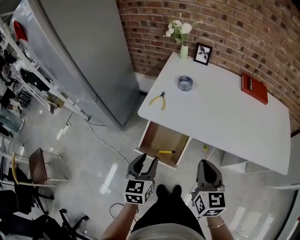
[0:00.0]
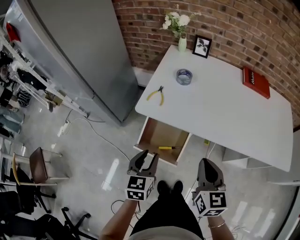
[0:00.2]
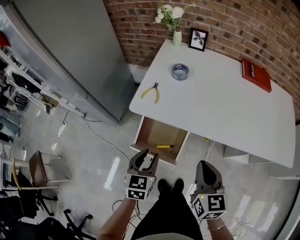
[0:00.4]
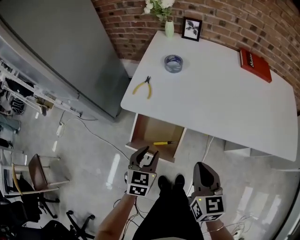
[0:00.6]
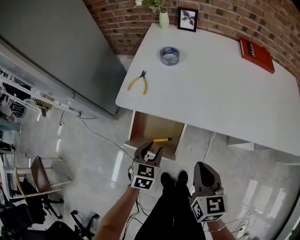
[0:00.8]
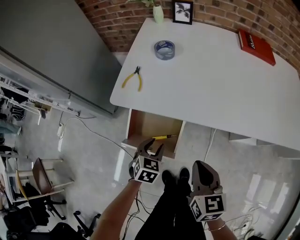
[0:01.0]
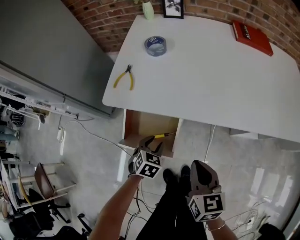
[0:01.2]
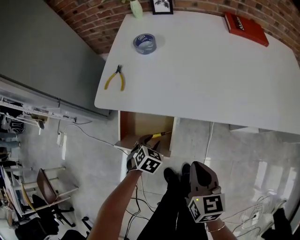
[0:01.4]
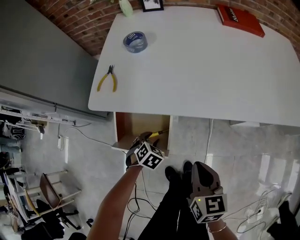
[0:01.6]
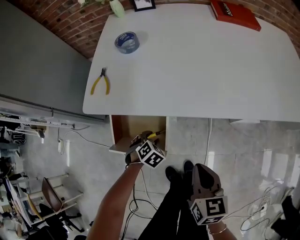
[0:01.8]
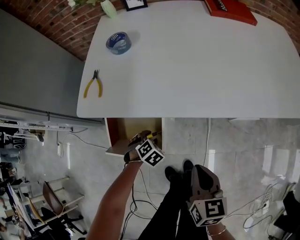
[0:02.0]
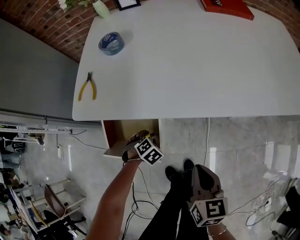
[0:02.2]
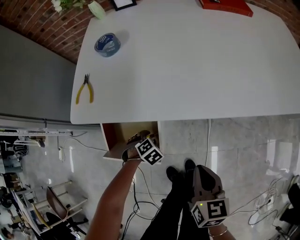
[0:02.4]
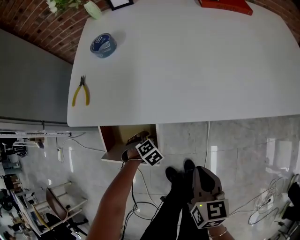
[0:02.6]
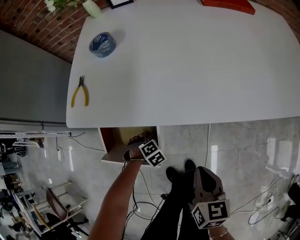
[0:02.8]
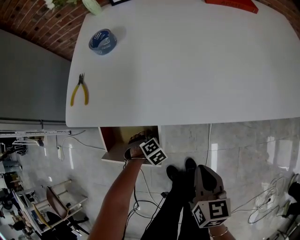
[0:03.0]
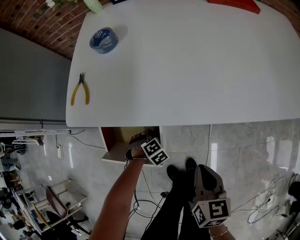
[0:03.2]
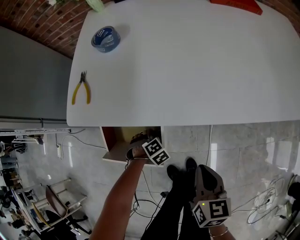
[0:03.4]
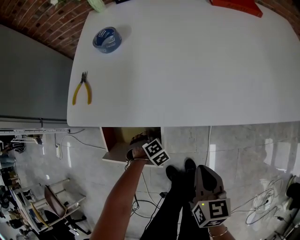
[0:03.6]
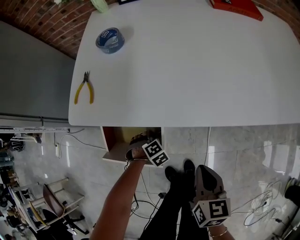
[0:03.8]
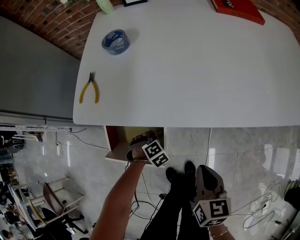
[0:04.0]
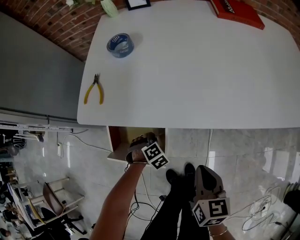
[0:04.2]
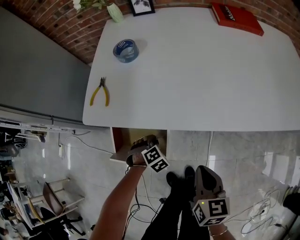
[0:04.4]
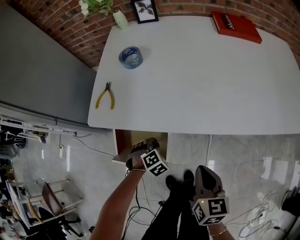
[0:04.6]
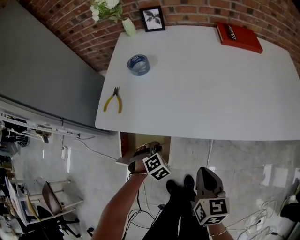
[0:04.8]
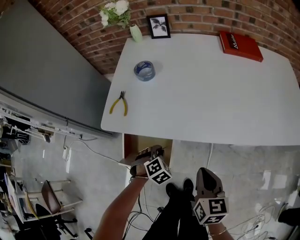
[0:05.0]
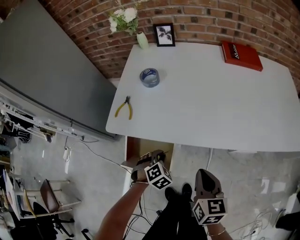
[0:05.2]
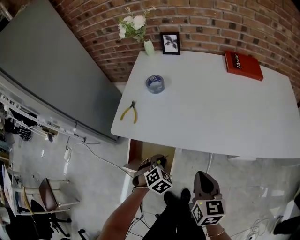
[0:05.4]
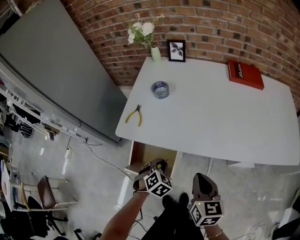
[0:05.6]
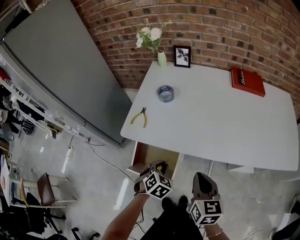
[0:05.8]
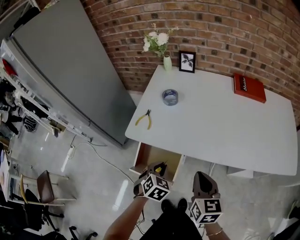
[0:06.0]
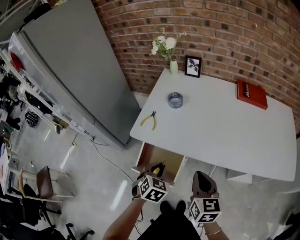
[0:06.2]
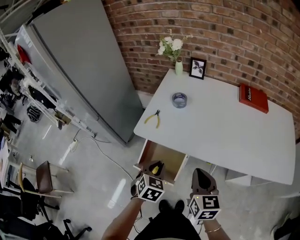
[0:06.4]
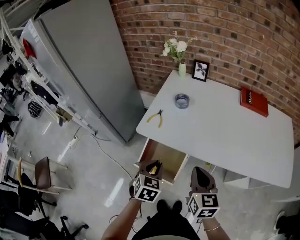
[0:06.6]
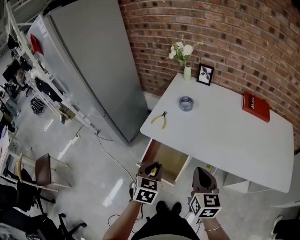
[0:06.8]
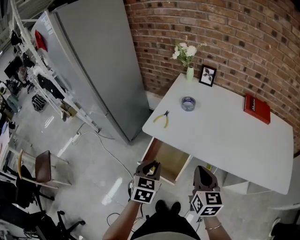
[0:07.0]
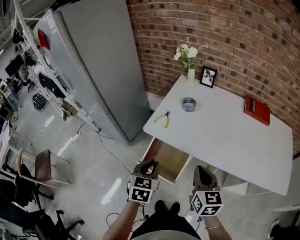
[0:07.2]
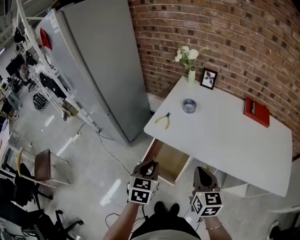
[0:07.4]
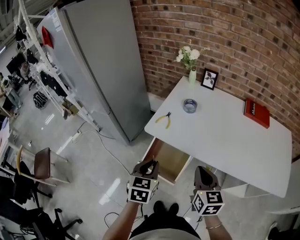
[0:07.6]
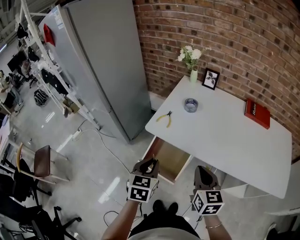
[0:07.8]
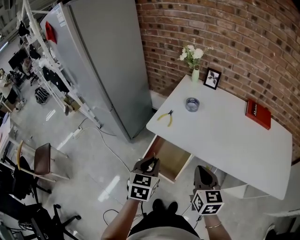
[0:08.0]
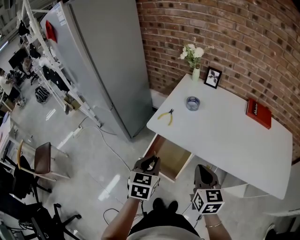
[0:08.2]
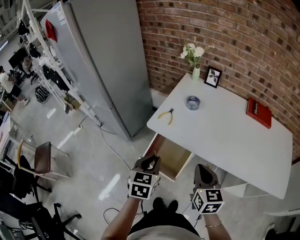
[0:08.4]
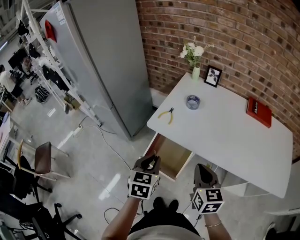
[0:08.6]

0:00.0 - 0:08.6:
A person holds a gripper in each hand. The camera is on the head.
0:00.0 - 0:01.4: The right gripper heads downward, covering some 15 cm, while the left gripper is displaced downward by approximately 25 cm, and angles its fingers downward, by approximately 40 degrees.
0:01.4 - 0:02.8: The right gripper is displaced downward by approximately 5 cm, while the left gripper travels downward by some 15 cm, and changes its angle by some 40 degrees.
0:02.8 - 0:04.4: The left gripper moves upward, approximately 5 cm, and closes.
0:04.4 - 0:05.8: The right gripper heads upward, covering some 15 cm, while the left gripper travels upward by approximately 20 cm, and rotates some 30 degrees.
0:05.8 - 0:07.2: The right gripper travels upward and to the left by approximately 10 cm; the left gripper heads upward and to the left, covering about 20 cm, and rotates roughly 40 degrees.
0:07.2 - 0:08.6: The grippers make only small movements.

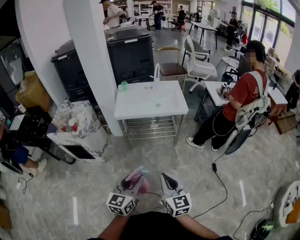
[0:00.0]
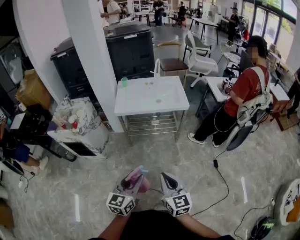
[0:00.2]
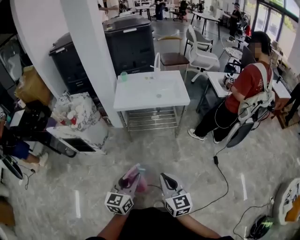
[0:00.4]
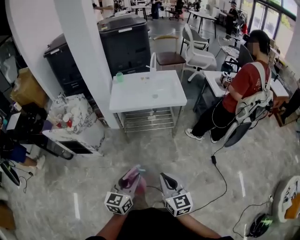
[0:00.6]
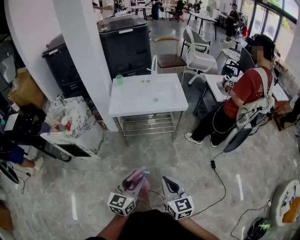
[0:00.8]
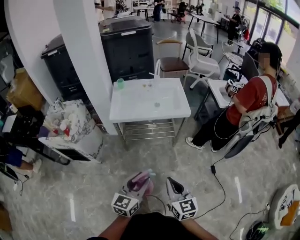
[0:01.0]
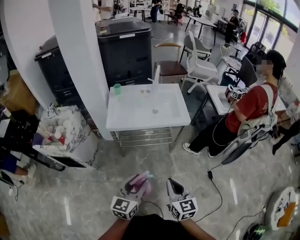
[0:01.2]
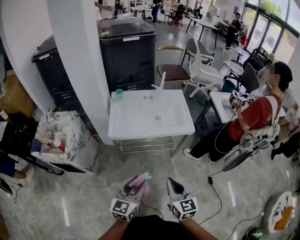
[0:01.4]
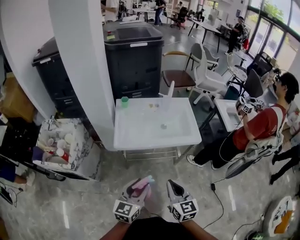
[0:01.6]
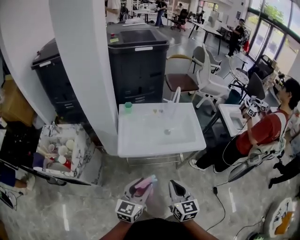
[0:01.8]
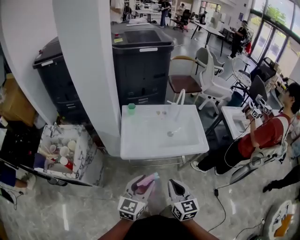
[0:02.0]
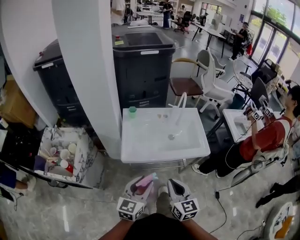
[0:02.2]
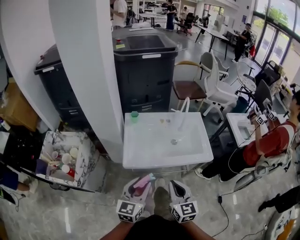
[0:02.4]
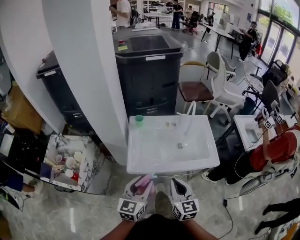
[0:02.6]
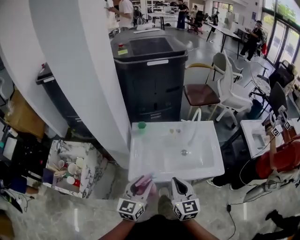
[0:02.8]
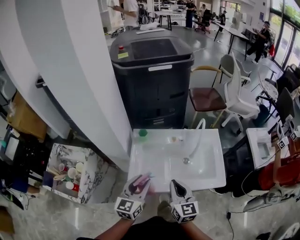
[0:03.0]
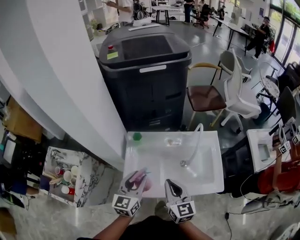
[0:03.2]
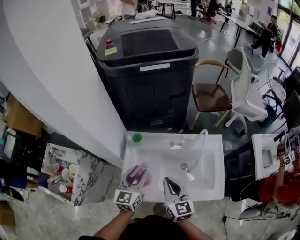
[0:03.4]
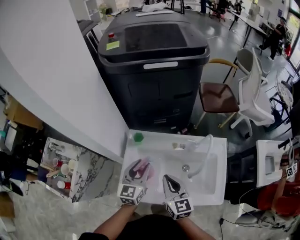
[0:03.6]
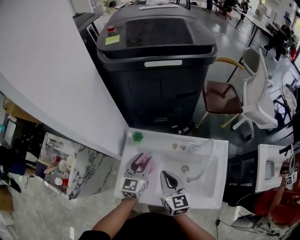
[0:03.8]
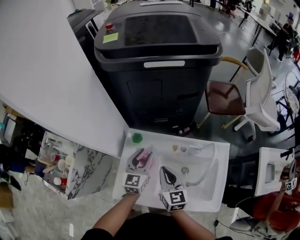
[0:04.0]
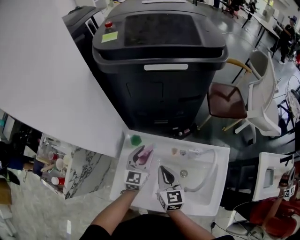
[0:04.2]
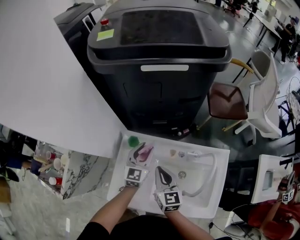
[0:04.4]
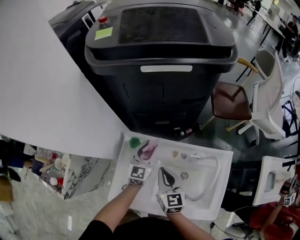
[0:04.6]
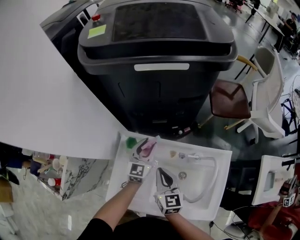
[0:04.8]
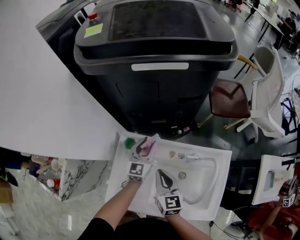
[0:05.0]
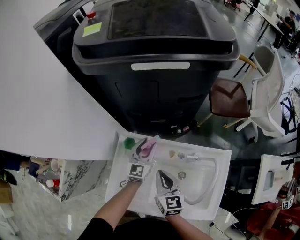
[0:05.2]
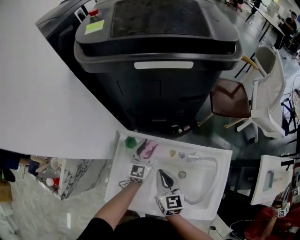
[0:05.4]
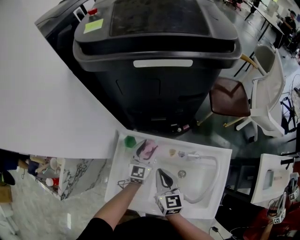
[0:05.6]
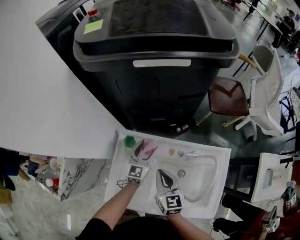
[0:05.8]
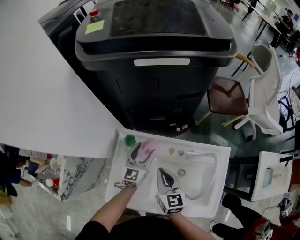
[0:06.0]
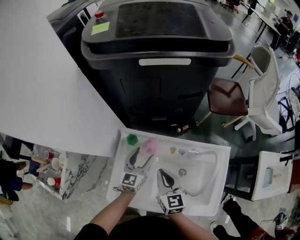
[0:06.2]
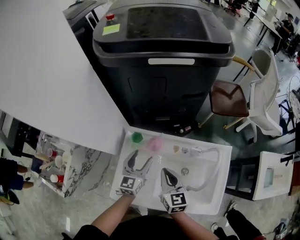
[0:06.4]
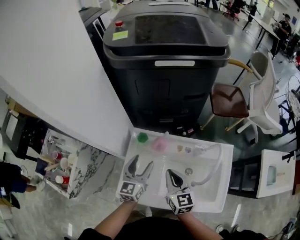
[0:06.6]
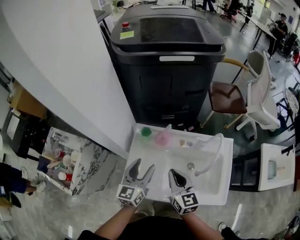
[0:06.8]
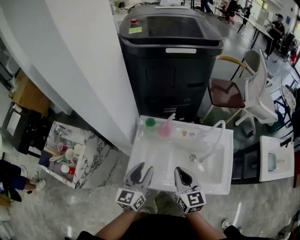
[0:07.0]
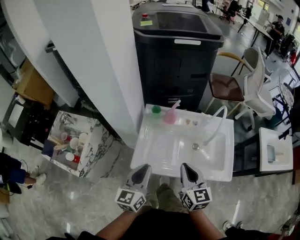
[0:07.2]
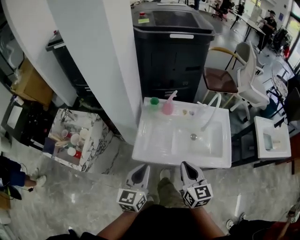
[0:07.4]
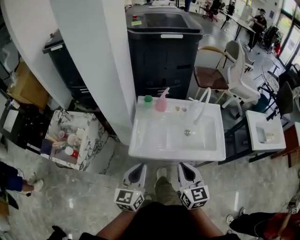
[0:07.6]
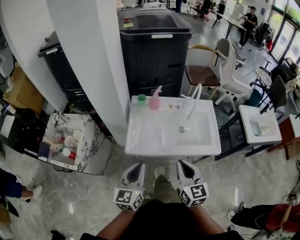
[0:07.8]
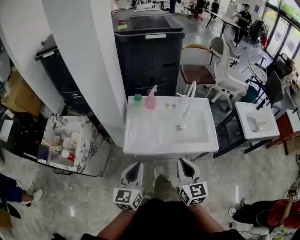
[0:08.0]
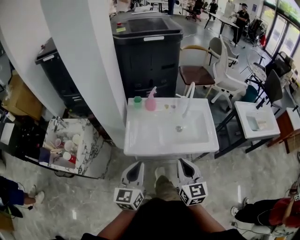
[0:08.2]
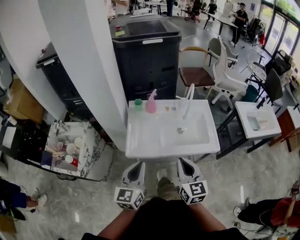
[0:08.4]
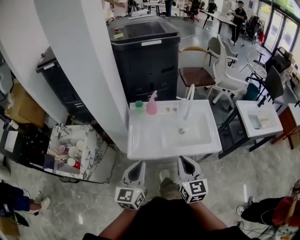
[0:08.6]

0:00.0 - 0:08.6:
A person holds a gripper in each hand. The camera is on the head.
0:00.0 - 0:01.4: The grippers both shift forward by some 25 cm.
0:01.4 - 0:02.8: The grippers both shift forward and to the left by about 35 cm.
0:02.8 - 0:04.4: Both grippers travel together forward, approximately 40 cm.
0:04.4 - 0:05.8: The left gripper goes about 5 cm downward, and opens its fingers.
0:05.8 - 0:07.2: The two grippers go about 35 cm backward and upward. The left gripper closes its fingers.
0:07.2 - 0:08.6: The two grippers go roughly 15 cm backward and upward.

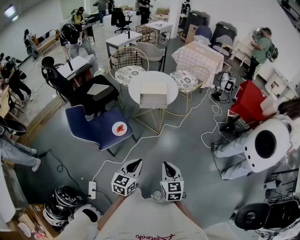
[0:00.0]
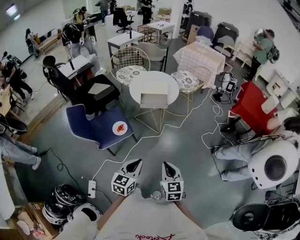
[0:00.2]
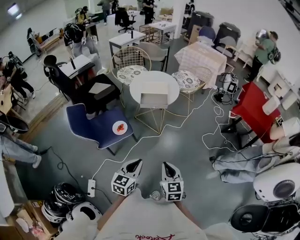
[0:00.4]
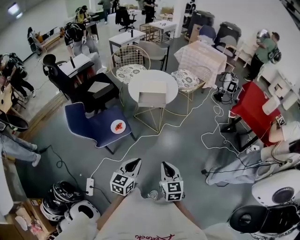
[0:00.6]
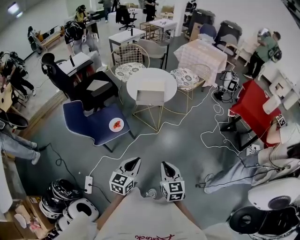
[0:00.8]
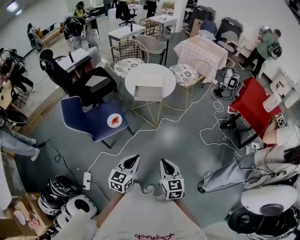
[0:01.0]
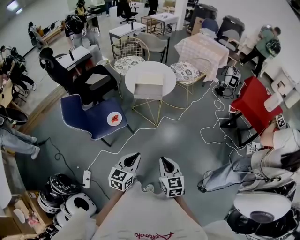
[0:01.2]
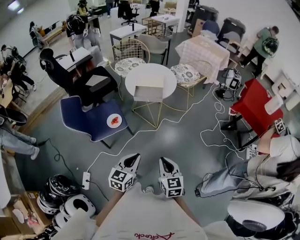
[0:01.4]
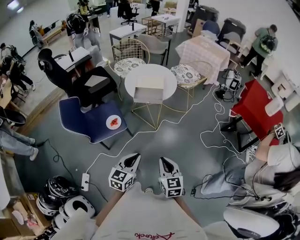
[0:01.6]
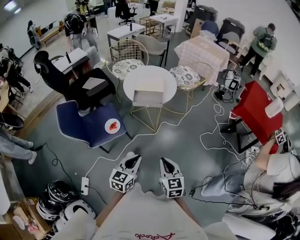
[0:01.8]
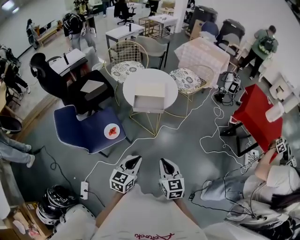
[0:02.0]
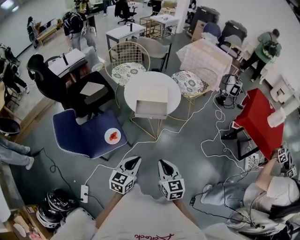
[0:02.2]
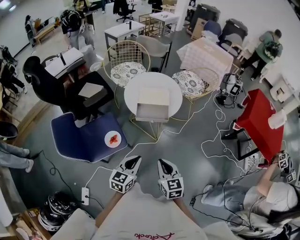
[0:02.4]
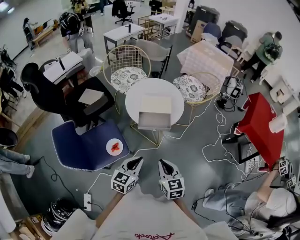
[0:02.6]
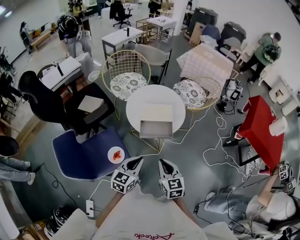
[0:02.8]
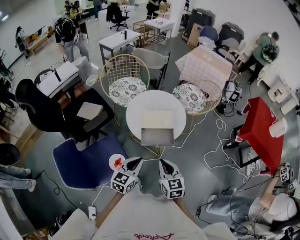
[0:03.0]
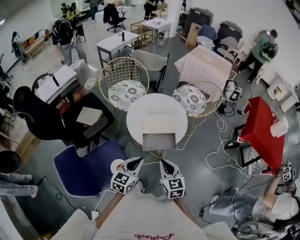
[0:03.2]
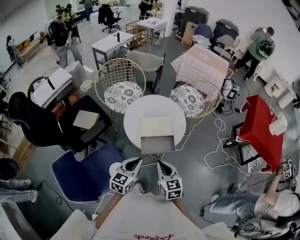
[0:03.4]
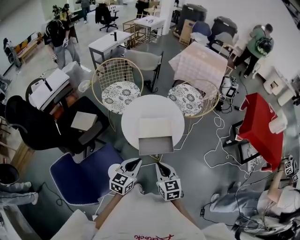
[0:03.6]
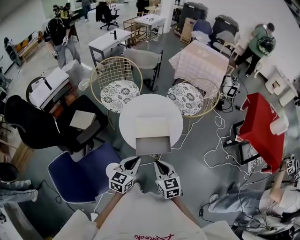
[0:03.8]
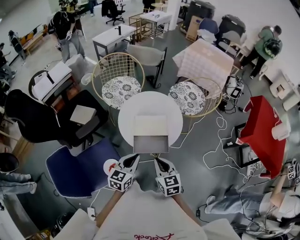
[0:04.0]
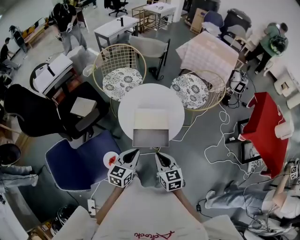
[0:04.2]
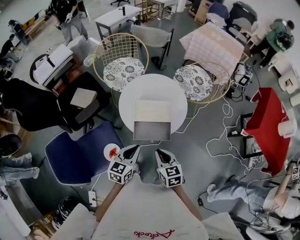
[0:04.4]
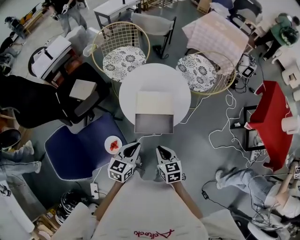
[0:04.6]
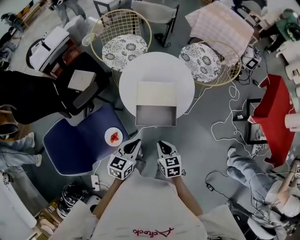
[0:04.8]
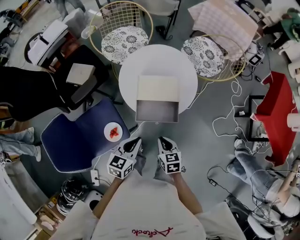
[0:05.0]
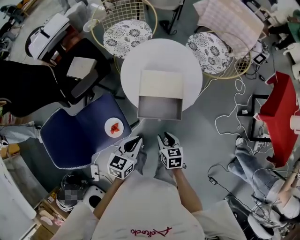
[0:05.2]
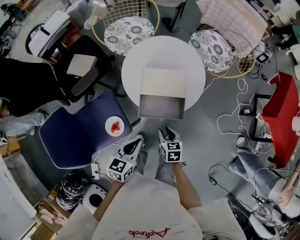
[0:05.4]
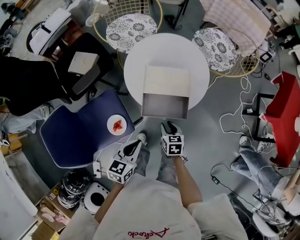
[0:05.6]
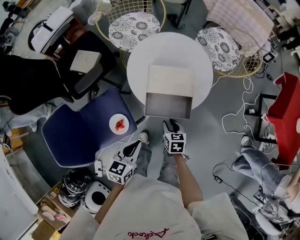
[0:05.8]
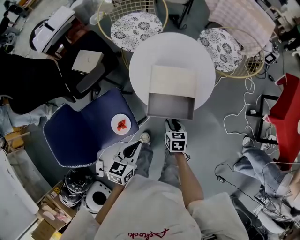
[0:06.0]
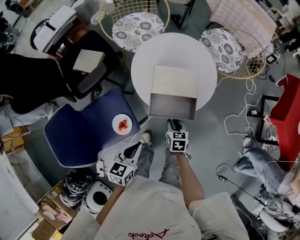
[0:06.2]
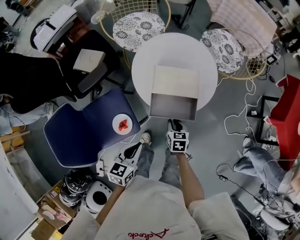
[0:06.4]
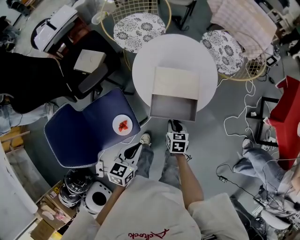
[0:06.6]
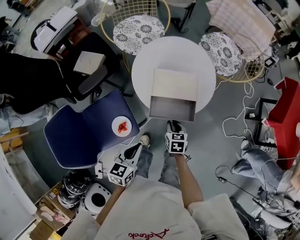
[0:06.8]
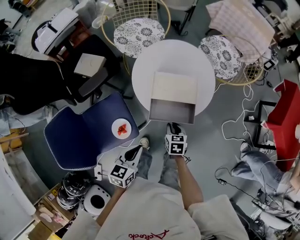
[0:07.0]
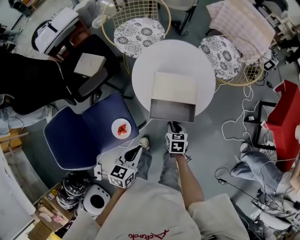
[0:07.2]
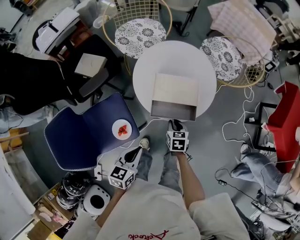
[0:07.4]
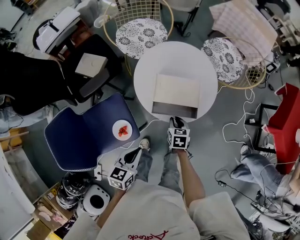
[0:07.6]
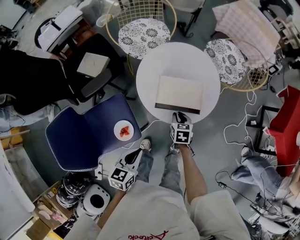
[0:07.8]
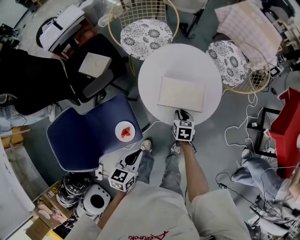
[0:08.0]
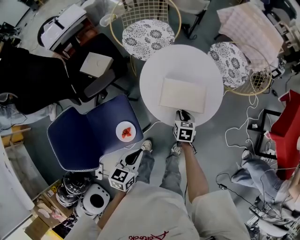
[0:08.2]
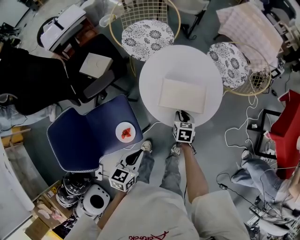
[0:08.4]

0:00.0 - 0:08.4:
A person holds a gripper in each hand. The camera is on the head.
0:00.0 - 0:01.4: Both grippers travel together to the right, approximately 5 cm.
0:01.4 - 0:02.8: The left gripper shifts roughly 30 cm forward. The right gripper moves forward and to the left, some 35 cm.
0:02.8 - 0:04.2: Both grippers travel together forward, some 15 cm.
0:04.2 - 0:05.6: The left gripper goes approximately 10 cm downward and backward. Meanwhile the right gripper shifts approximately 20 cm downward, swivels approximately 20 degrees, and opens.
0:05.6 - 0:07.0: The grippers move only a little.
0:07.0 - 0:08.4: The right gripper goes about 10 cm forward.
